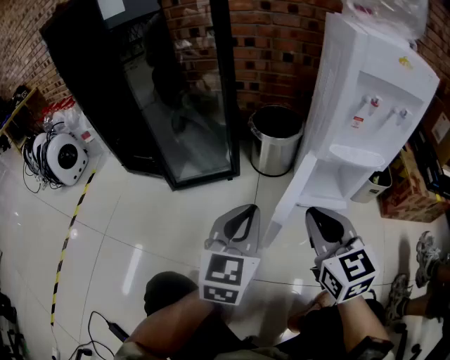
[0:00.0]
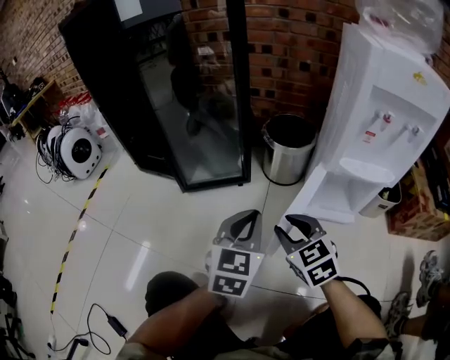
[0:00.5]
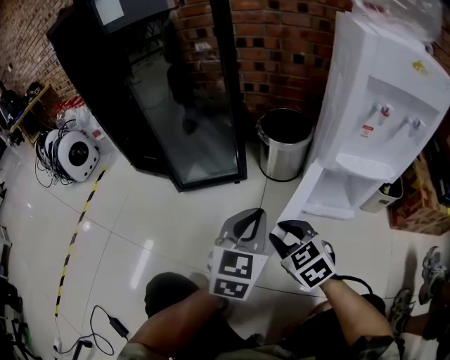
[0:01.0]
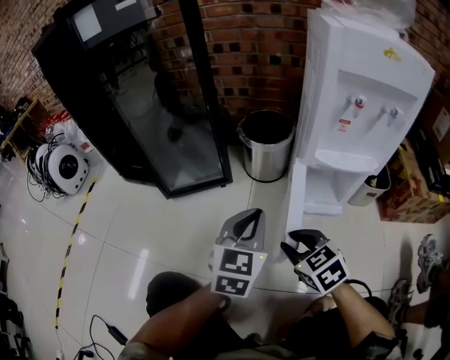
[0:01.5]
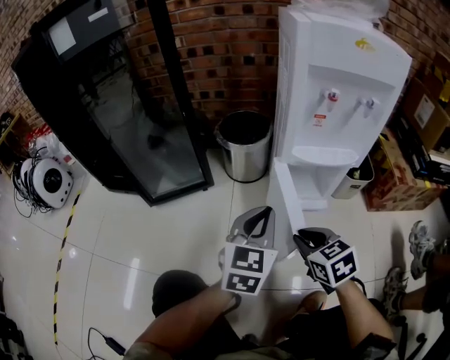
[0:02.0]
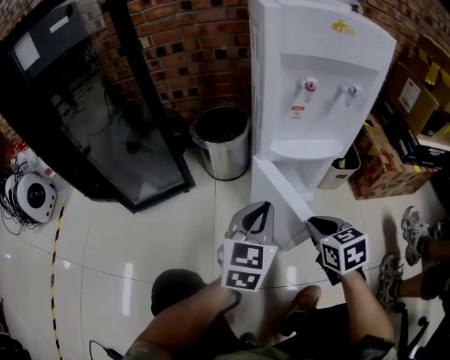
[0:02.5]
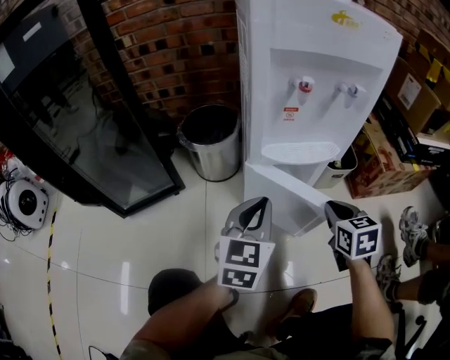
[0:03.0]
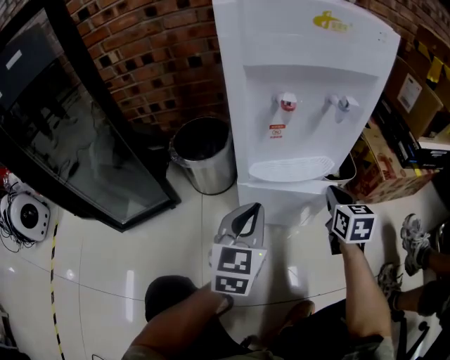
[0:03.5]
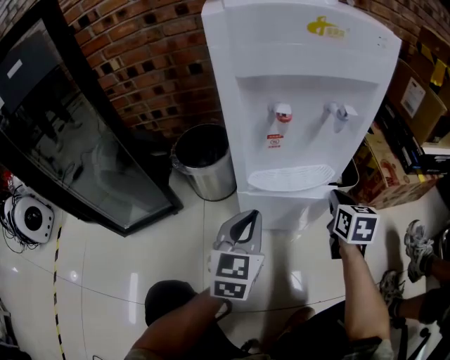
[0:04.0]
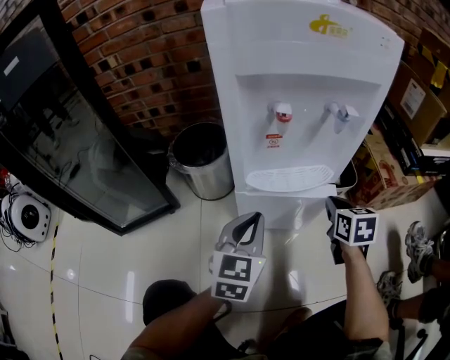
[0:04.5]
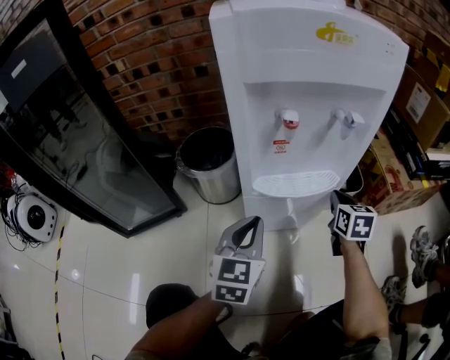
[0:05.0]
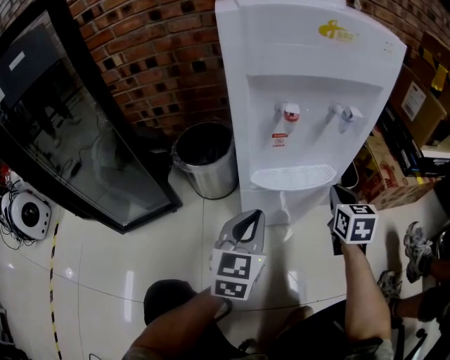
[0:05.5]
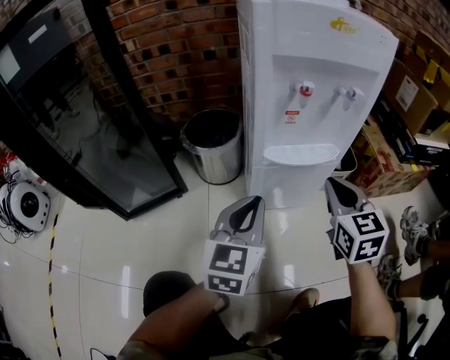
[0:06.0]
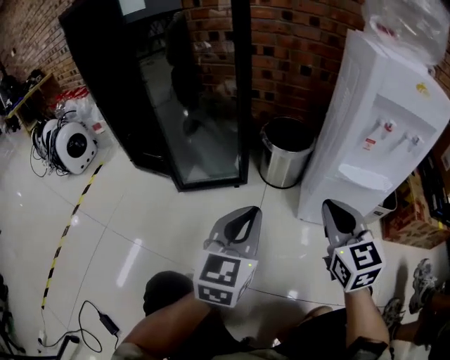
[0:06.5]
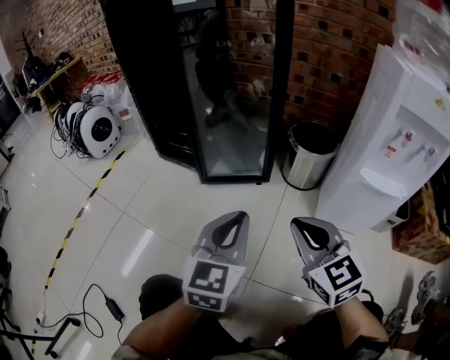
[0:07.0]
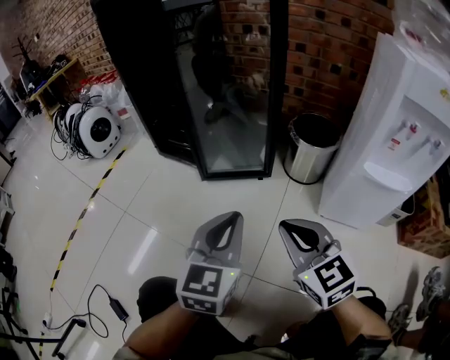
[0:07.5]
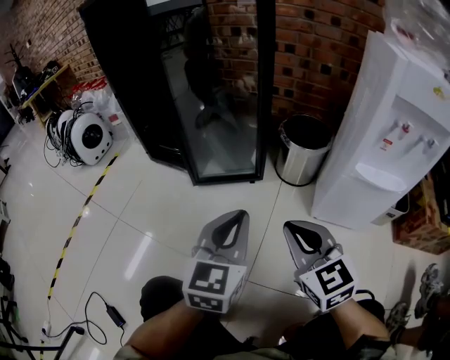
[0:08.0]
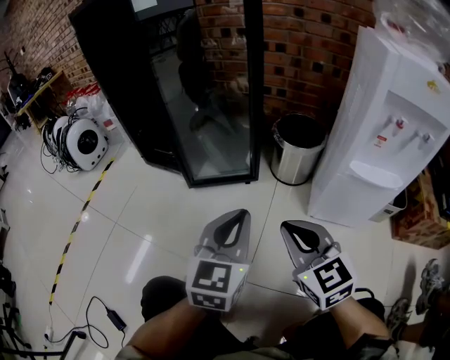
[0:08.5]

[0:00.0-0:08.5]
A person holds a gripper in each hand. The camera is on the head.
0:00.0 to 0:02.0: The right gripper heads downward and to the right, covering some 15 cm, and turns by approximately 30 degrees, while the left gripper heads to the right, covering approximately 15 cm.
0:02.0 to 0:04.0: The left gripper goes roughly 15 cm forward and to the right; the right gripper heads to the right and forward, covering some 30 cm, and rotates about 40 degrees.
0:04.0 to 0:06.5: The right gripper changes place by some 40 cm, and swivels about 40 degrees. Meanwhile the left gripper changes place by some 30 cm.
0:06.5 to 0:08.5: The right gripper is displaced to the left by some 15 cm.

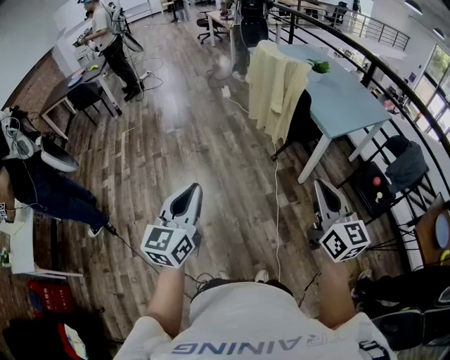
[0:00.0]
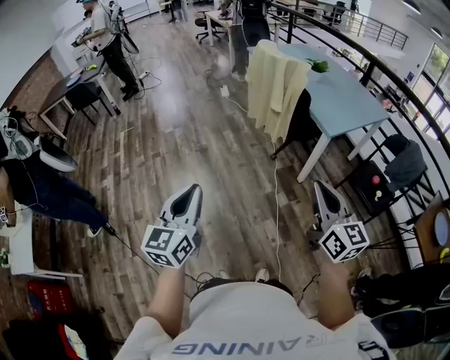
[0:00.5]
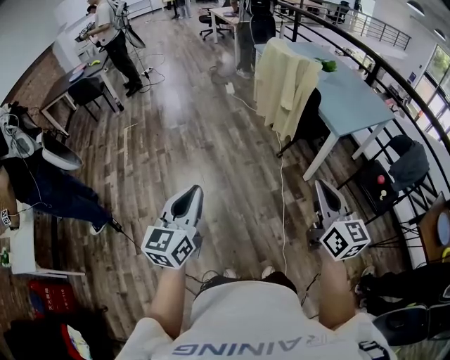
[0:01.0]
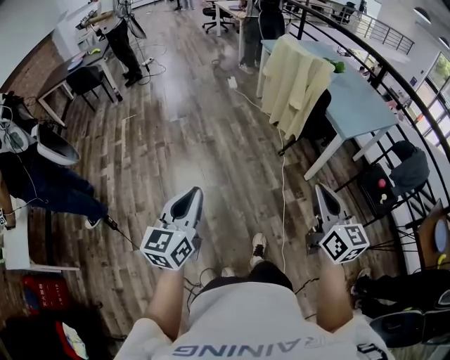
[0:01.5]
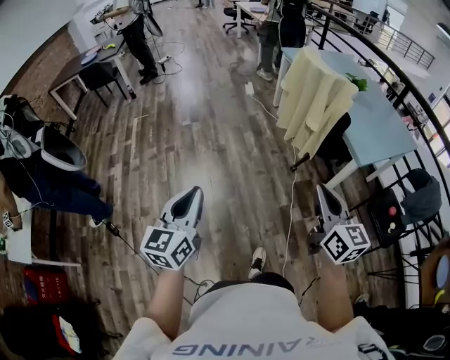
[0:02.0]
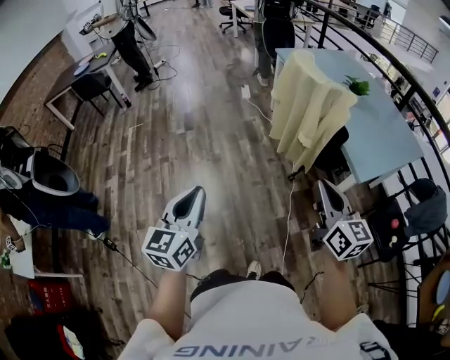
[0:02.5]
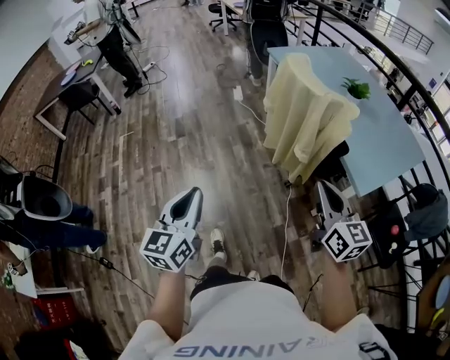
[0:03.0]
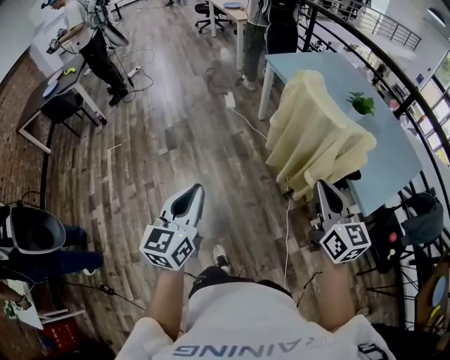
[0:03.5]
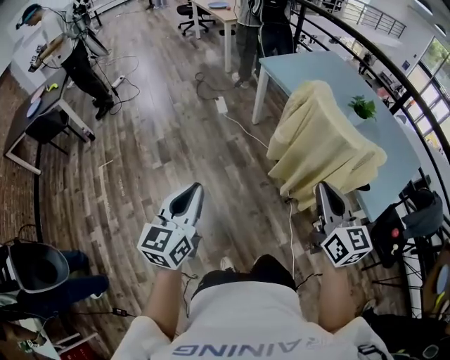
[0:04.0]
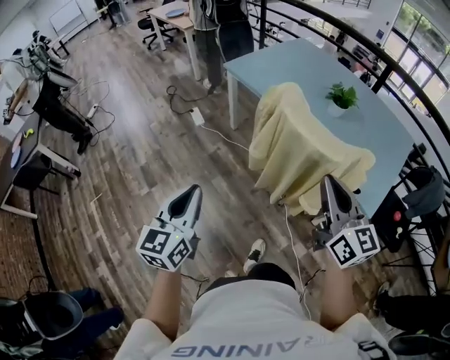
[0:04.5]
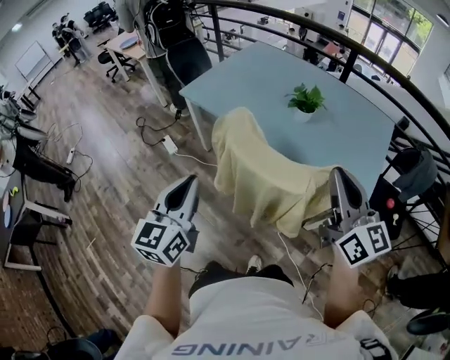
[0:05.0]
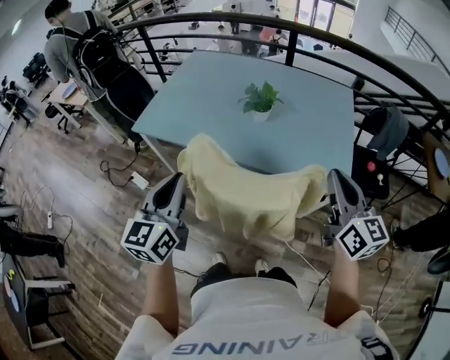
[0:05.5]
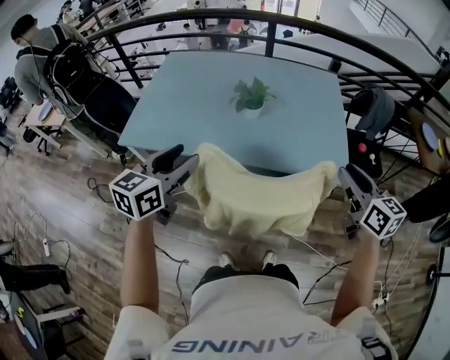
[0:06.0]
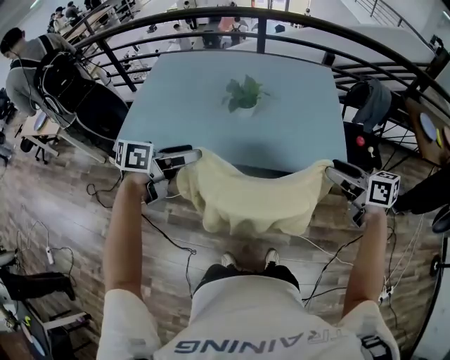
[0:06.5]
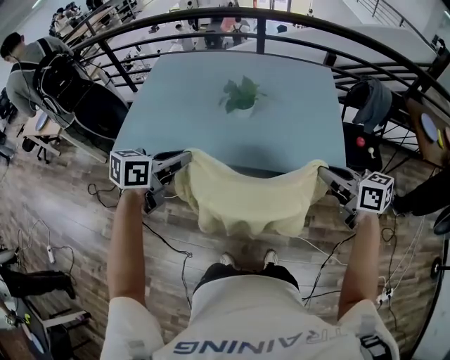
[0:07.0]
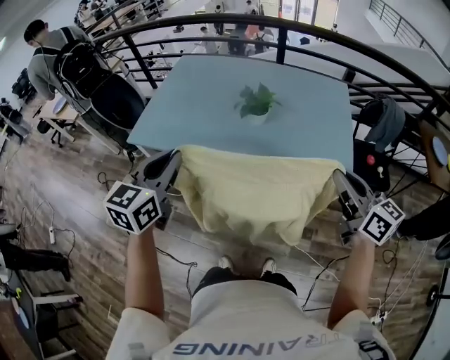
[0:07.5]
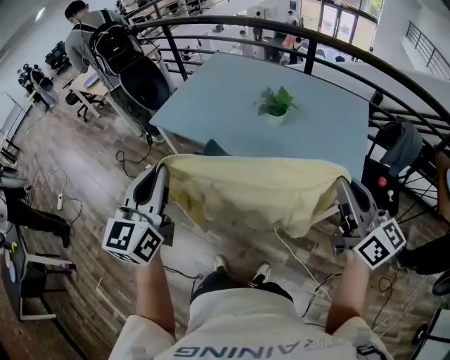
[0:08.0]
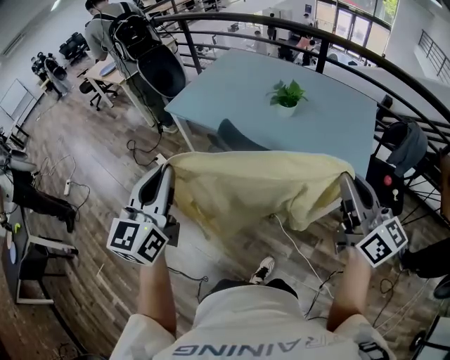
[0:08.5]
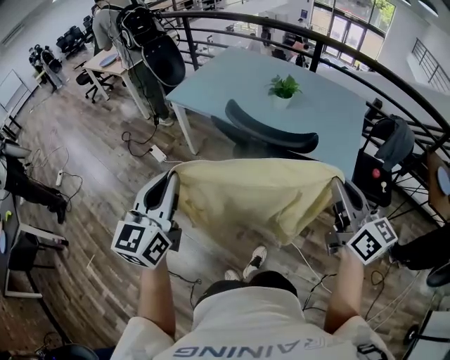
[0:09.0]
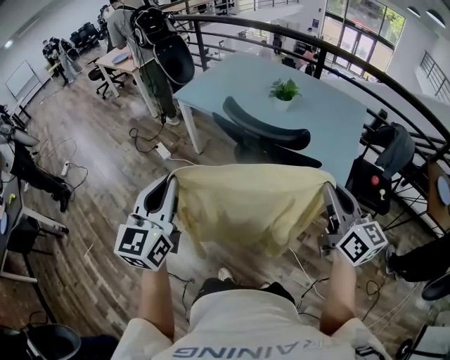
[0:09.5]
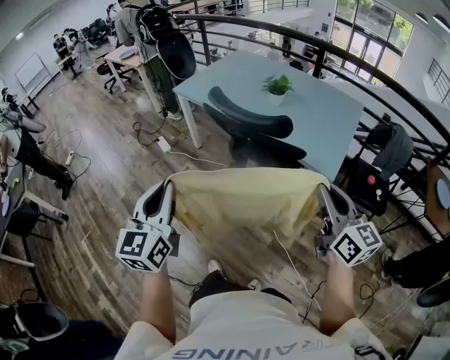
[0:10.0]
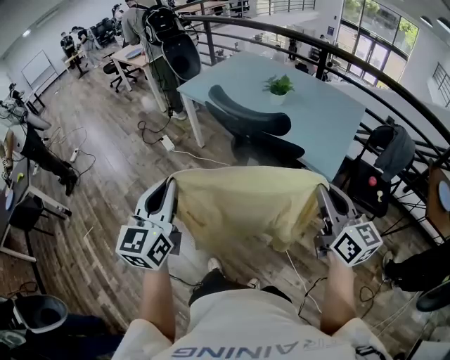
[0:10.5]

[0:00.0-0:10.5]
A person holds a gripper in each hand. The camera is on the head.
0:00.0 to 0:02.0: The two grippers go roughly 20 cm forward and to the left.
0:02.0 to 0:04.0: Both grippers are carried forward, roughly 50 cm.
0:04.0 to 0:06.5: The left gripper changes place by approximately 60 cm, rotates roughly 90 degrees, and opens up, while the right gripper changes place by roughly 40 cm, rotates roughly 40 degrees, and opens its fingers.
0:06.5 to 0:08.5: The left gripper shifts by some 30 cm, changes its angle by approximately 80 degrees, and closes. The right gripper heads upward, covering approximately 15 cm, turns by roughly 30 degrees, and closes up.
0:08.5 to 0:10.5: The two grippers go some 25 cm backward.

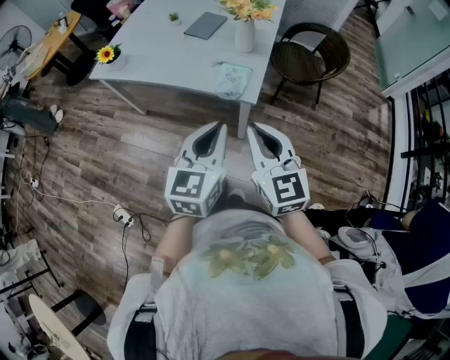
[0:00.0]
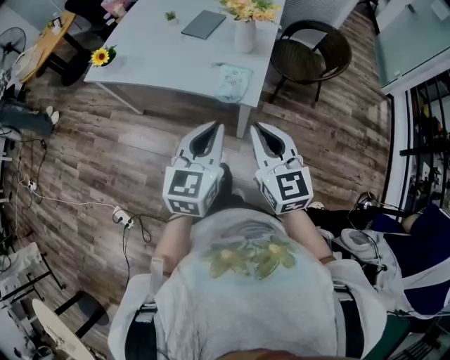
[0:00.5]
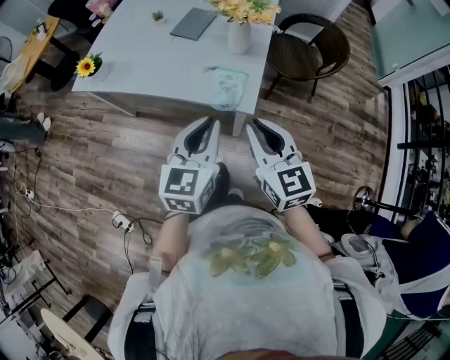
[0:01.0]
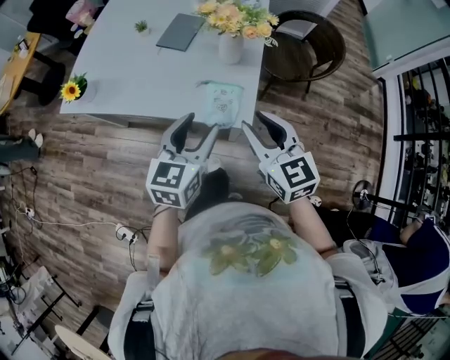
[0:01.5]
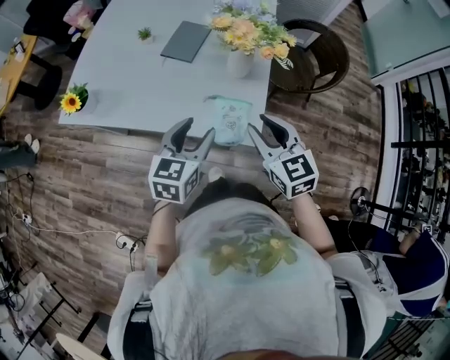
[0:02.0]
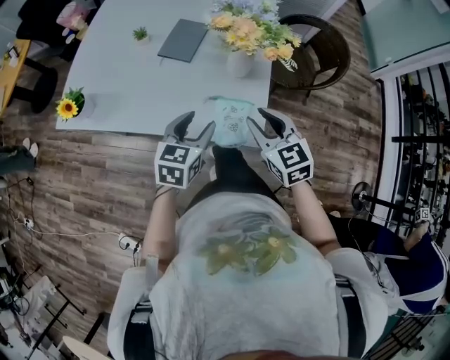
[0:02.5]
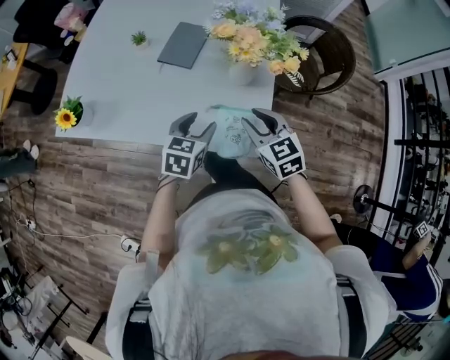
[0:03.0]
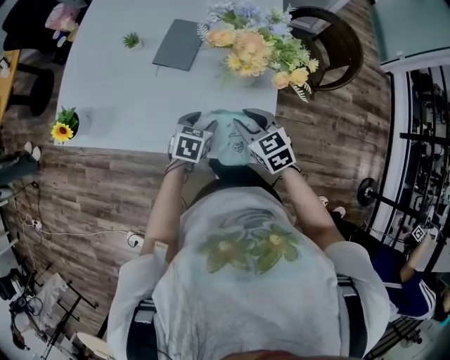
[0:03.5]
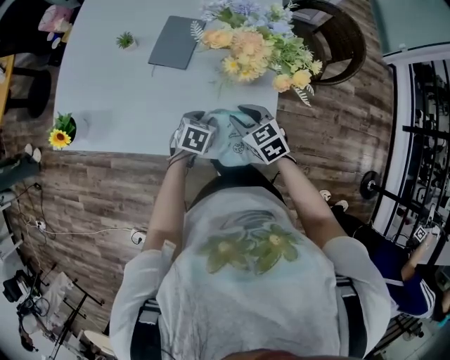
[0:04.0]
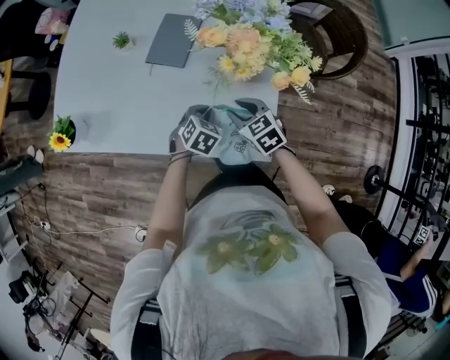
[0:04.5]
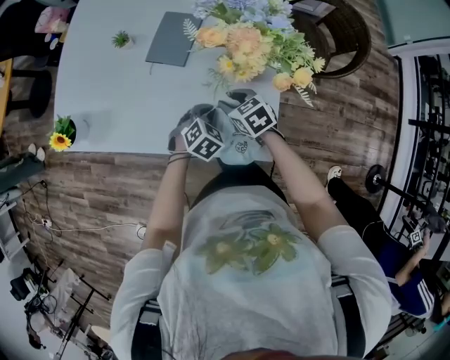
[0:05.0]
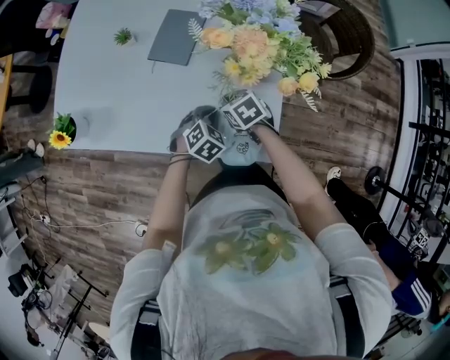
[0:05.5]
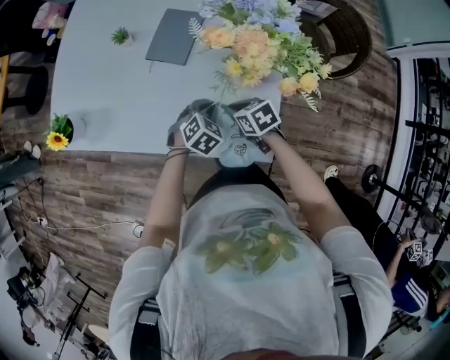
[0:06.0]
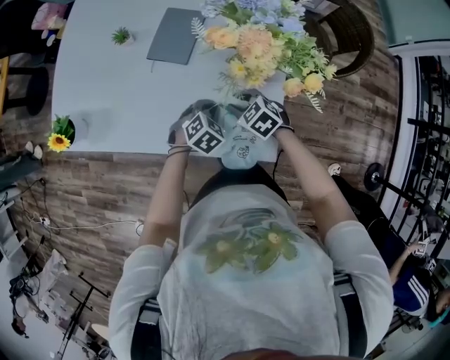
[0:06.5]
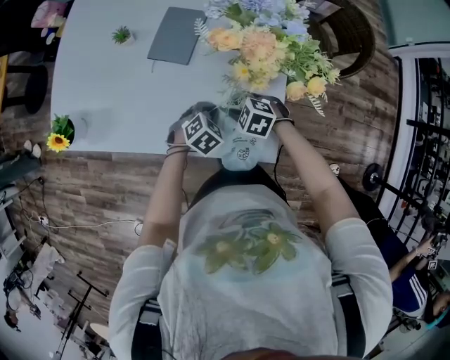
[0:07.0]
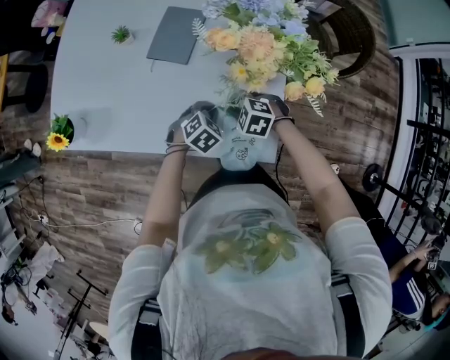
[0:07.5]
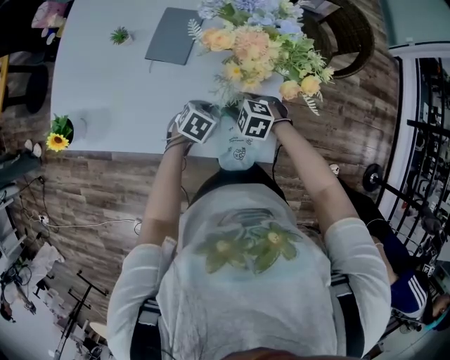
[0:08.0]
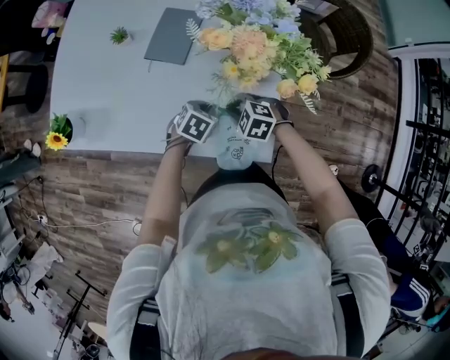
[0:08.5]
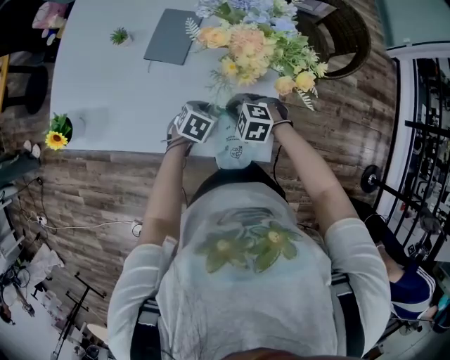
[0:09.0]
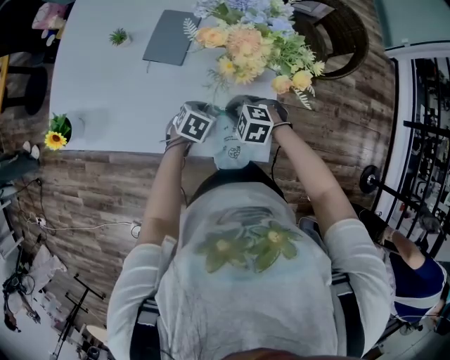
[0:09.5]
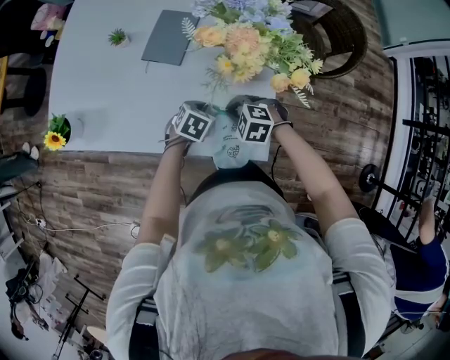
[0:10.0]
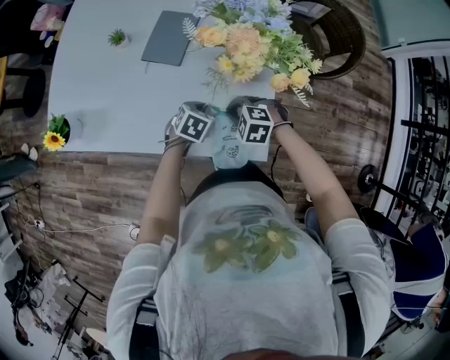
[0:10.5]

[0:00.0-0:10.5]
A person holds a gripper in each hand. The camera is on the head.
0:00.0 to 0:02.0: The grippers both shift forward by about 25 cm. The right gripper opens its fingers; the left gripper opens.
0:02.0 to 0:04.0: The grippers both shift downward and forward by about 25 cm. The right gripper changes its angle by some 20 degrees. Meanwhile the left gripper tilts its fingers roughly 30 degrees downward.
0:04.0 to 0:06.5: The left gripper changes its angle by approximately 30 degrees, and closes up. Meanwhile the right gripper is displaced downward by approximately 5 cm, changes its angle by some 20 degrees, and closes, then opens again.
0:06.5 to 0:08.5: The left gripper rotates about 20 degrees, while the right gripper rotates roughly 20 degrees, and closes its fingers.
0:08.5 to 0:10.5: There are only small adjustments of the grippers.
